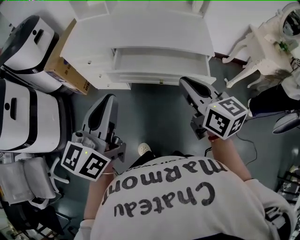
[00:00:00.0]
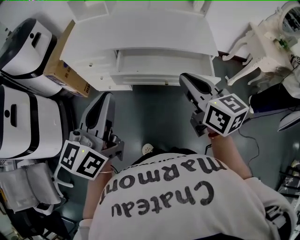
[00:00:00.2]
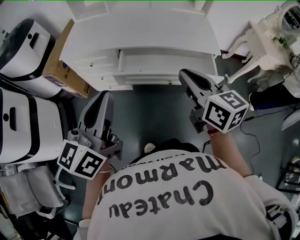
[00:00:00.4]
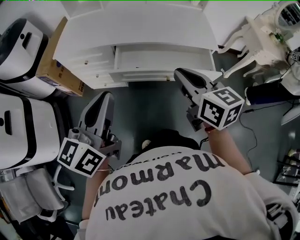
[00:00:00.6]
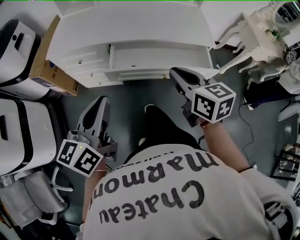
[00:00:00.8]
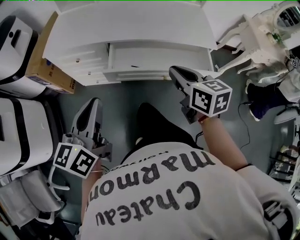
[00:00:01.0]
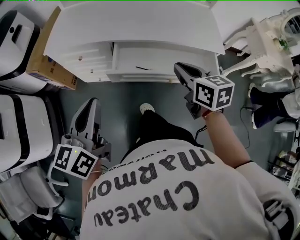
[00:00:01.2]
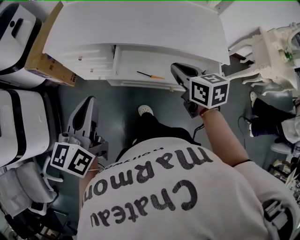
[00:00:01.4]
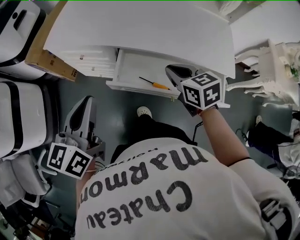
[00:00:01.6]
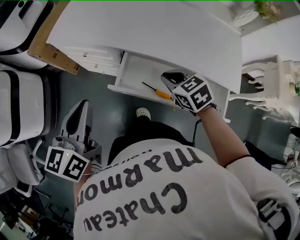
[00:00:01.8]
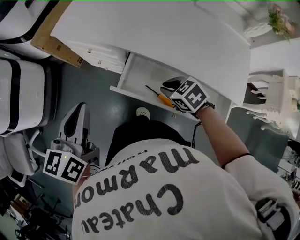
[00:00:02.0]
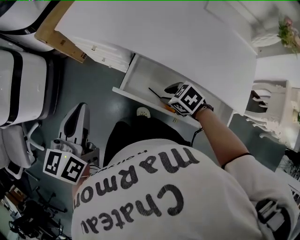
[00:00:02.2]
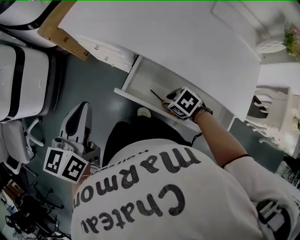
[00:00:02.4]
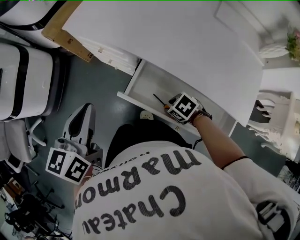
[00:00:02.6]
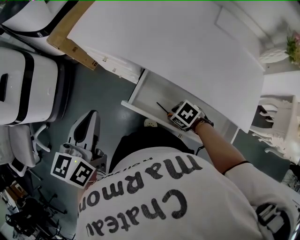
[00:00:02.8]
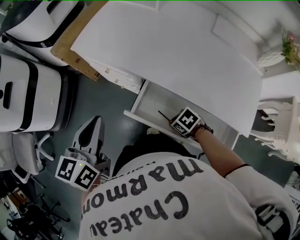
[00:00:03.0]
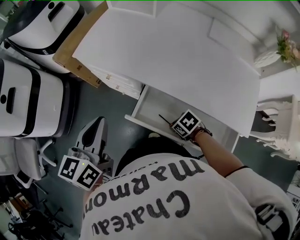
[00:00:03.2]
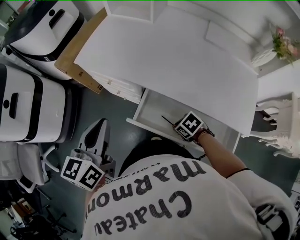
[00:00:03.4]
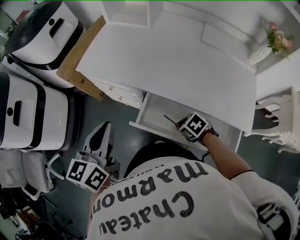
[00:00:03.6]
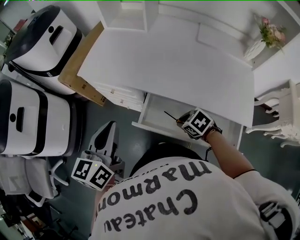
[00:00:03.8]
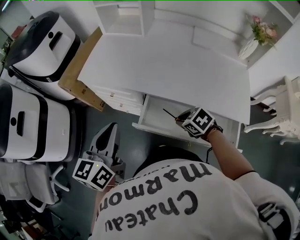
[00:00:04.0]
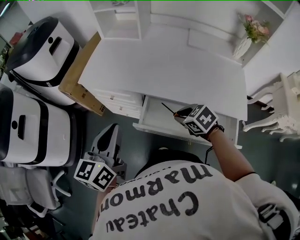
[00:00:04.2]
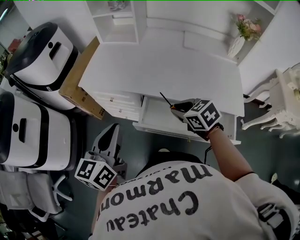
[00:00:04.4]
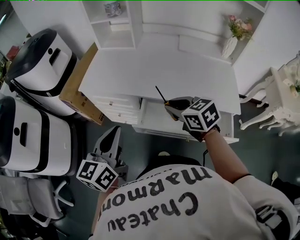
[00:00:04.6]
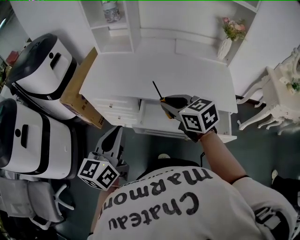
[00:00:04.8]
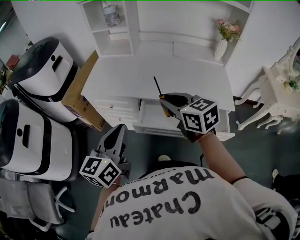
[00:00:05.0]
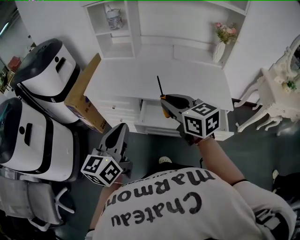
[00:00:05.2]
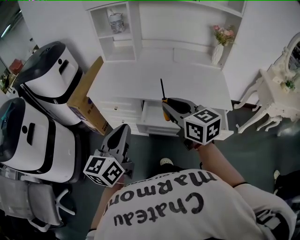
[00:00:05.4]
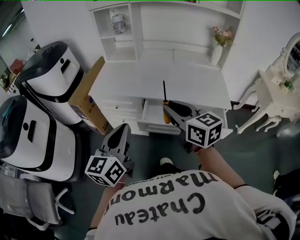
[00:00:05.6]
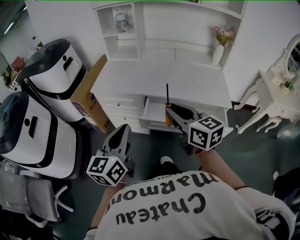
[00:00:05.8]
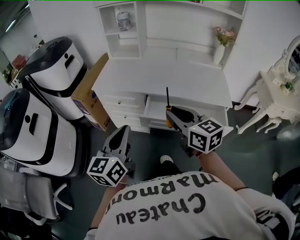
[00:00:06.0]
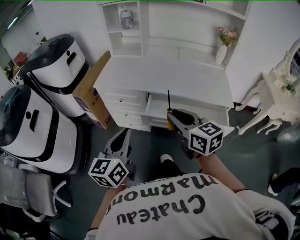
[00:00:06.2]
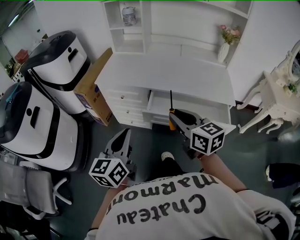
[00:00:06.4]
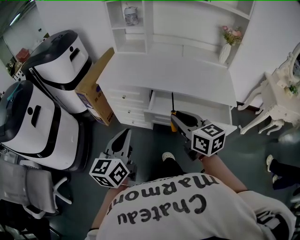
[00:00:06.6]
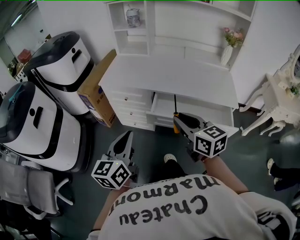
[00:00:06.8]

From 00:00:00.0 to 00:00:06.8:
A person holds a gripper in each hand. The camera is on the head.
From 00:00:00.0 to 00:00:01.4: The right gripper moves forward and downward, some 25 cm. Meanwhile the left gripper heads forward, to the left and downward, covering roughly 20 cm.
From 00:00:01.4 to 00:00:02.8: The right gripper moves downward, about 25 cm, tips its fingers downward by approximately 30 degrees, and opens. Meanwhile the left gripper ends up roughly 10 cm from where it was, and rotates about 20 degrees.
From 00:00:02.8 to 00:00:04.0: The left gripper shifts by approximately 5 cm, while the right gripper travels upward by roughly 10 cm, and changes its angle by roughly 20 degrees.
From 00:00:04.0 to 00:00:05.4: The left gripper moves backward and upward, about 15 cm. Meanwhile the right gripper goes roughly 30 cm upward, and points its fingers approximately 50 degrees further upward.
From 00:00:05.4 to 00:00:06.8: The left gripper goes some 5 cm backward. The right gripper heads backward and downward, covering approximately 10 cm.

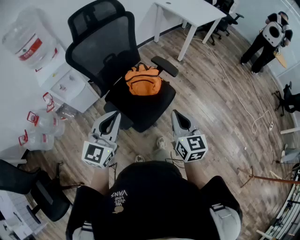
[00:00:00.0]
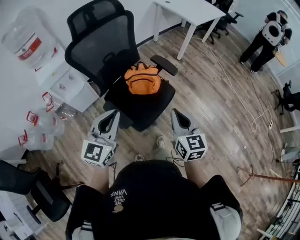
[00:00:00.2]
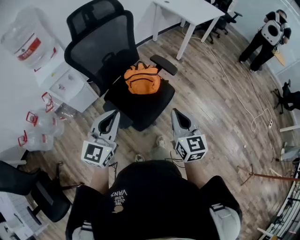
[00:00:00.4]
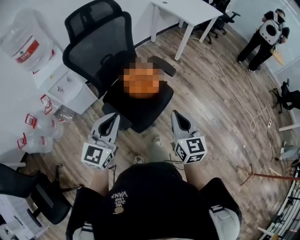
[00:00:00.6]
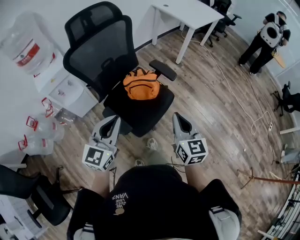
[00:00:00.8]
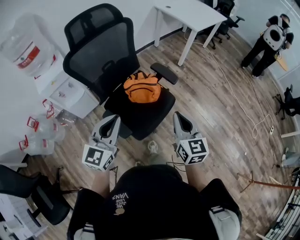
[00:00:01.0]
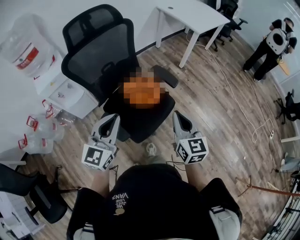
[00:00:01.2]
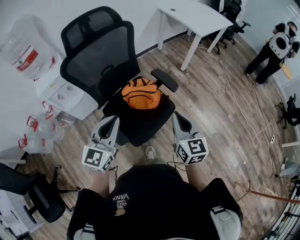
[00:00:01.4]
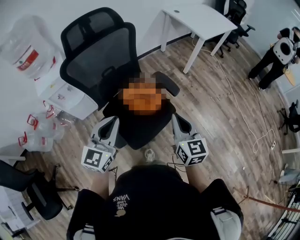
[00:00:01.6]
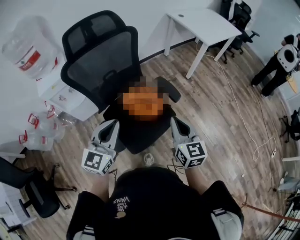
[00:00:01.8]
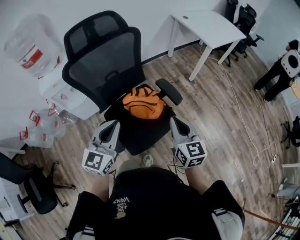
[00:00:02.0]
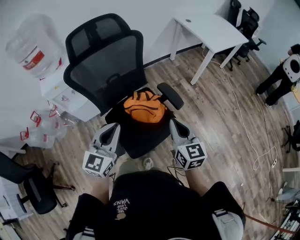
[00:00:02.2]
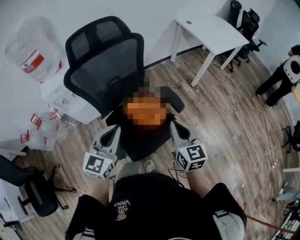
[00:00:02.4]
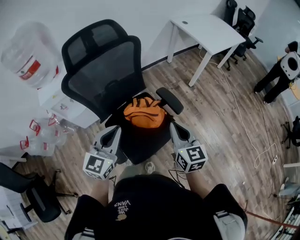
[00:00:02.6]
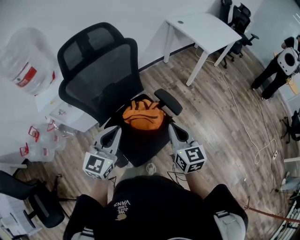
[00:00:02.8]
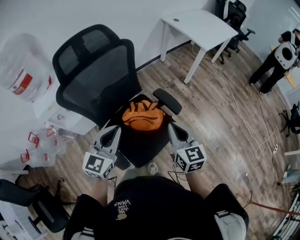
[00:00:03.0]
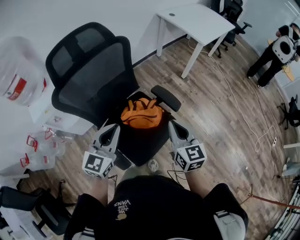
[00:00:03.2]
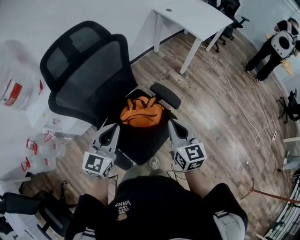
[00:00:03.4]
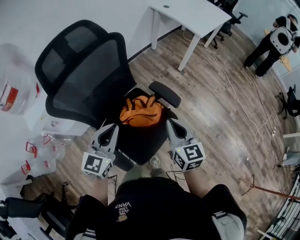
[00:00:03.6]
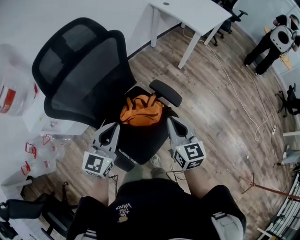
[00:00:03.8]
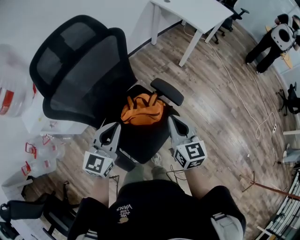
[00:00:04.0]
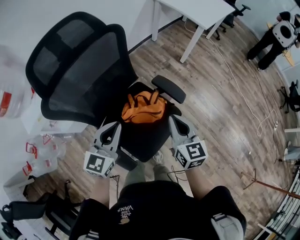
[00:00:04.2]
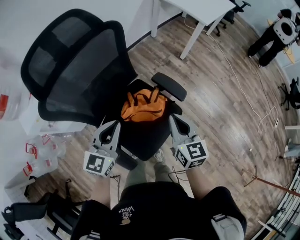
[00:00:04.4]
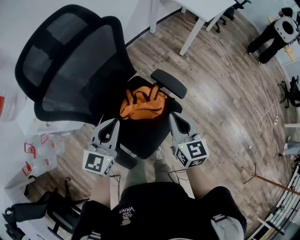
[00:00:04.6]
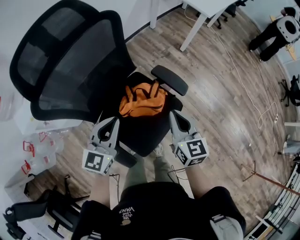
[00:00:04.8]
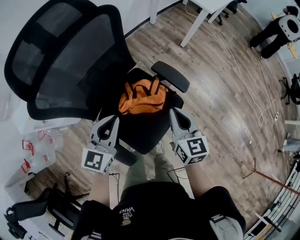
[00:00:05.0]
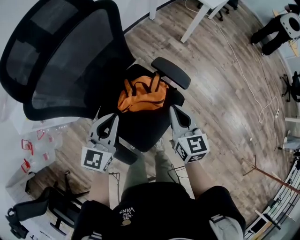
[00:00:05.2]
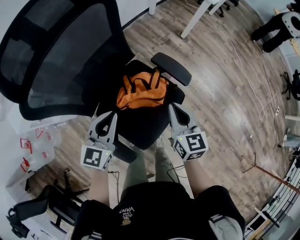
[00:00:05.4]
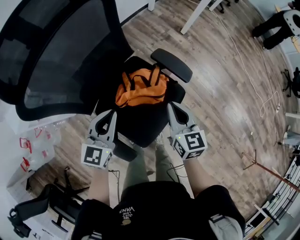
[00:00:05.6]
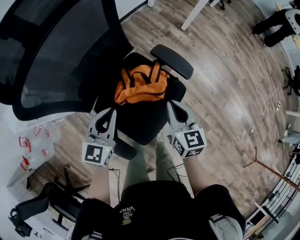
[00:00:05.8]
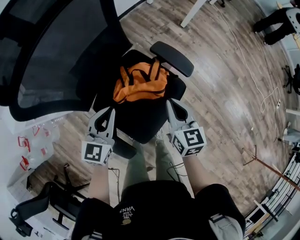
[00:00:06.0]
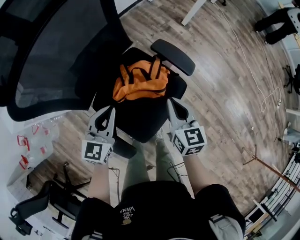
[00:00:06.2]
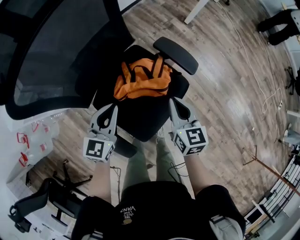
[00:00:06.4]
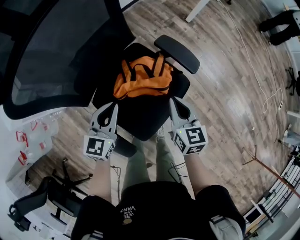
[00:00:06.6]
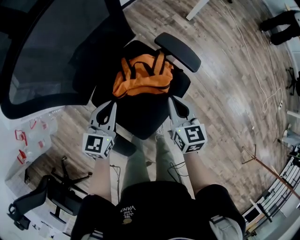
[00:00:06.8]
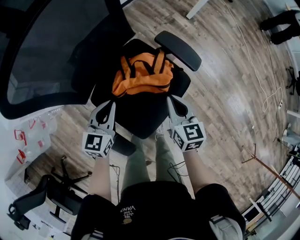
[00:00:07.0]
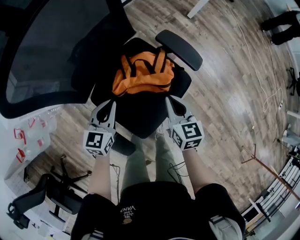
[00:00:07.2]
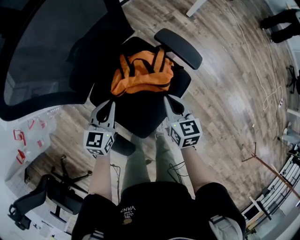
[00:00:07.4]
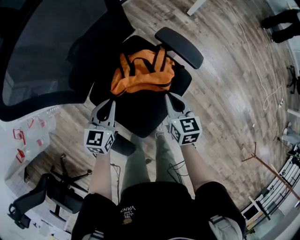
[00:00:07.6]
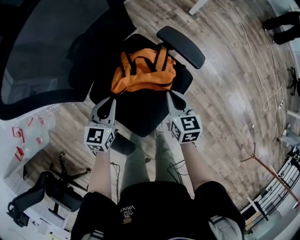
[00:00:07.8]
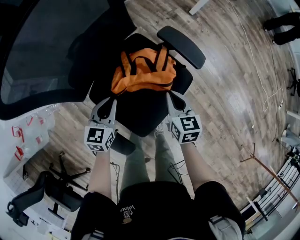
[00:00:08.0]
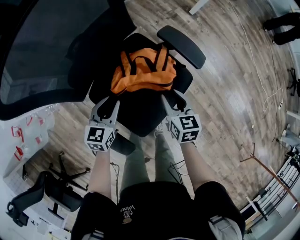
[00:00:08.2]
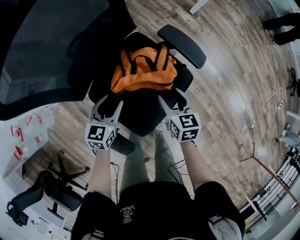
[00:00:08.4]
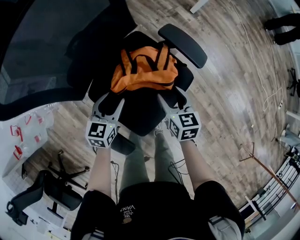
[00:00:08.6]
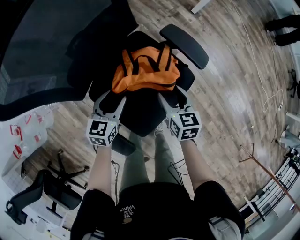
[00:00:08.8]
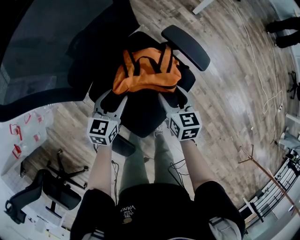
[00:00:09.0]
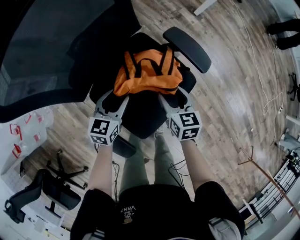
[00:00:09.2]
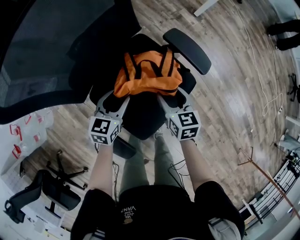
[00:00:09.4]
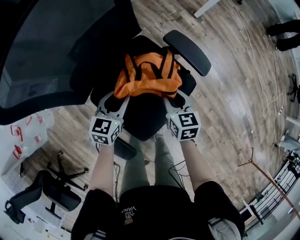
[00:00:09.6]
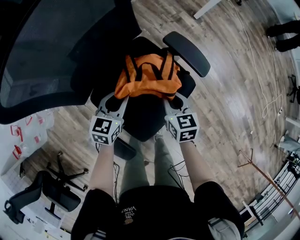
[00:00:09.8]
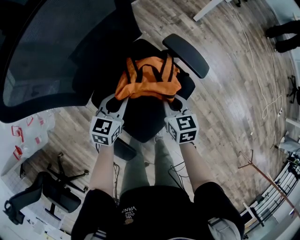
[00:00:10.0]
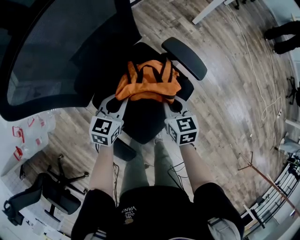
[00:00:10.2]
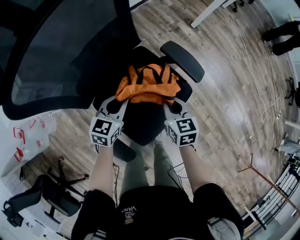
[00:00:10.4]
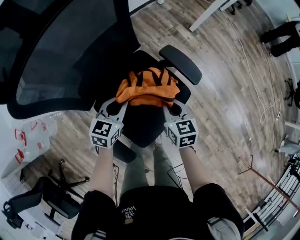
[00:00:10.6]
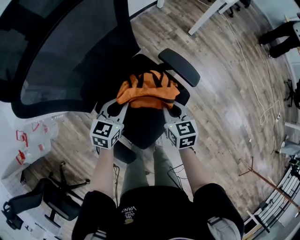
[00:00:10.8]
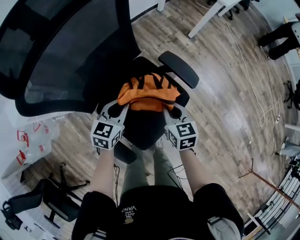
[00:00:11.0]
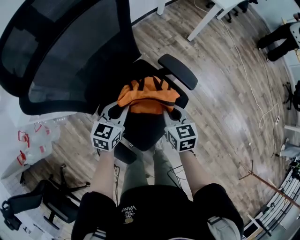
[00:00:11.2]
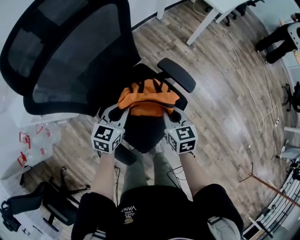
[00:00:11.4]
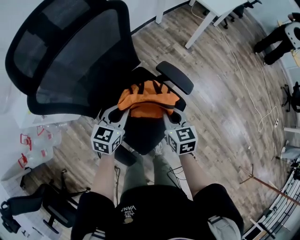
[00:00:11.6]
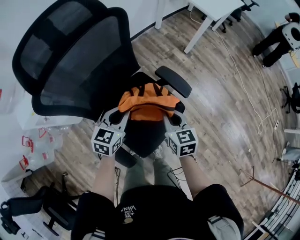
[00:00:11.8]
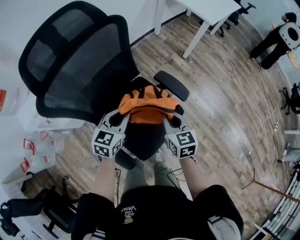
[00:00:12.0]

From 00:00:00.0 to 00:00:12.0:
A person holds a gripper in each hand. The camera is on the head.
From 00:00:00.0 to 00:00:01.6: The two grippers go about 15 cm forward.
From 00:00:01.6 to 00:00:03.0: The two grippers go some 10 cm forward.
From 00:00:03.0 to 00:00:04.4: Both grippers move downward and forward, roughly 10 cm.
From 00:00:04.4 to 00:00:06.0: Both grippers move downward, some 15 cm.
From 00:00:06.0 to 00:00:07.6: Both grippers travel together downward, about 10 cm.
From 00:00:07.6 to 00:00:09.0: The left gripper opens, while the right gripper opens.
From 00:00:09.0 to 00:00:10.4: The left gripper changes place by about 5 cm, and closes its fingers, while the right gripper closes.
From 00:00:10.4 to 00:00:12.0: Both grippers travel together upward, approximately 15 cm.

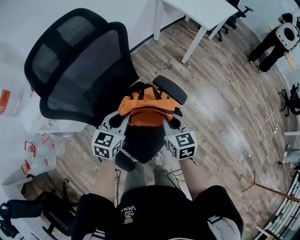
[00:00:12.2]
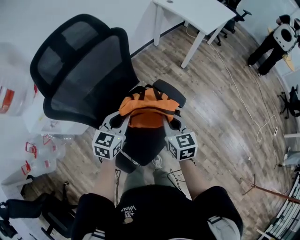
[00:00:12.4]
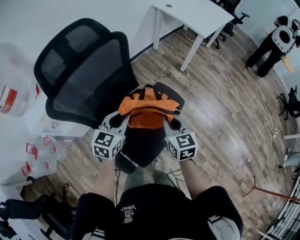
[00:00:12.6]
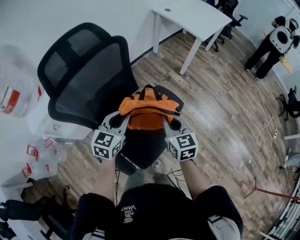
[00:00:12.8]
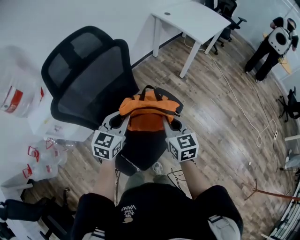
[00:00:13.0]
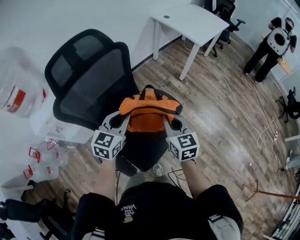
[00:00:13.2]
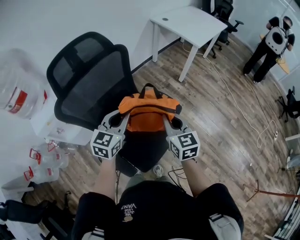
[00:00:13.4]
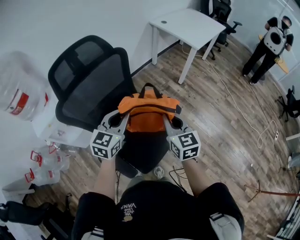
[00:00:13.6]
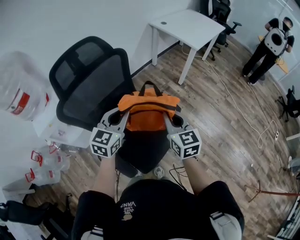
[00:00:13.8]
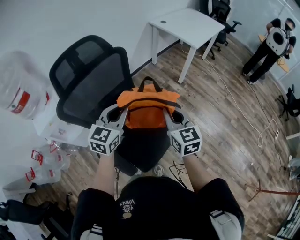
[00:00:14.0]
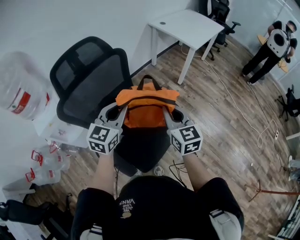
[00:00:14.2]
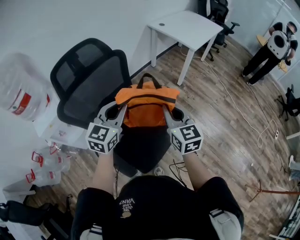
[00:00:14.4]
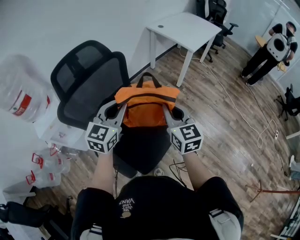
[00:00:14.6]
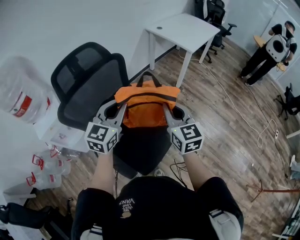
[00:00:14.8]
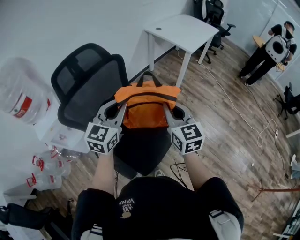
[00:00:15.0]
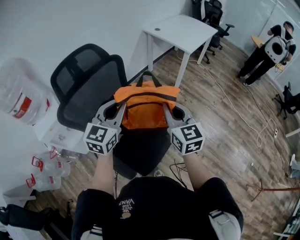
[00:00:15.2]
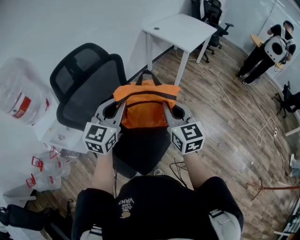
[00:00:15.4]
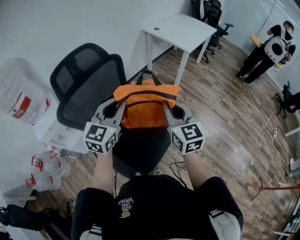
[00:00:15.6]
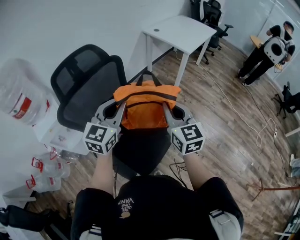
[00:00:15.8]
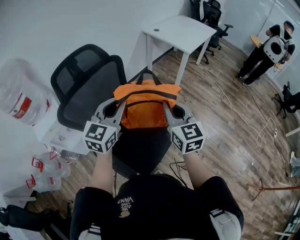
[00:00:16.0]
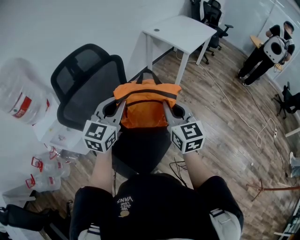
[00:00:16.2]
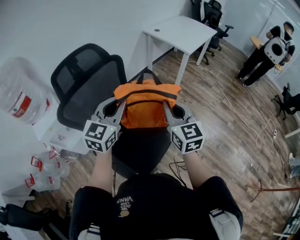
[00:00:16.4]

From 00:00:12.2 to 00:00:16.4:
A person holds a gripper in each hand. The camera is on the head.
From 00:00:12.2 to 00:00:13.6: The grippers both shift upward by approximately 15 cm.
From 00:00:13.6 to 00:00:15.0: The two grippers go some 10 cm upward.
From 00:00:15.0 to 00:00:16.4: The grippers make only small movements.
